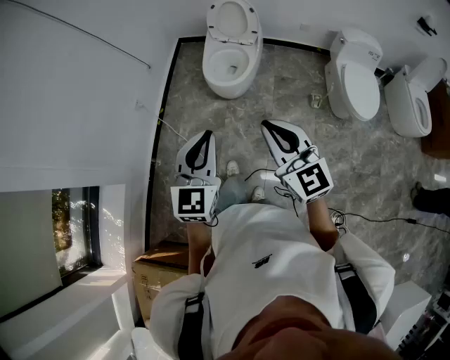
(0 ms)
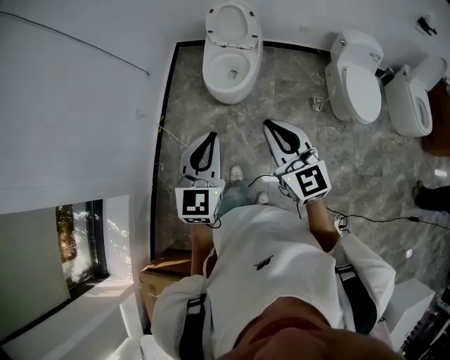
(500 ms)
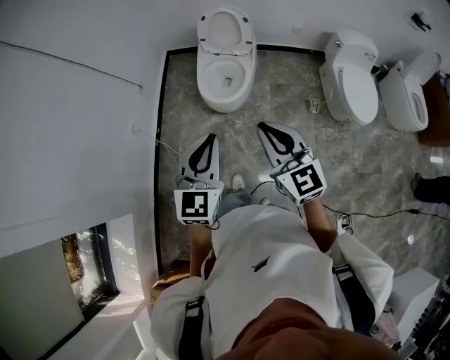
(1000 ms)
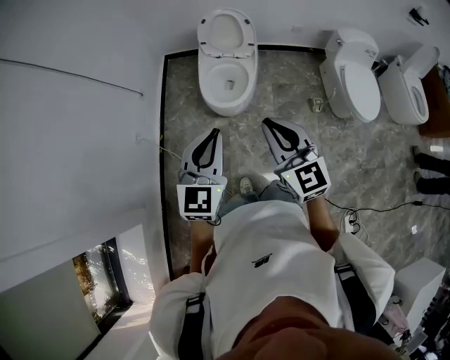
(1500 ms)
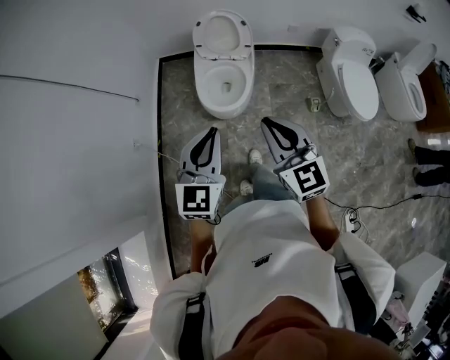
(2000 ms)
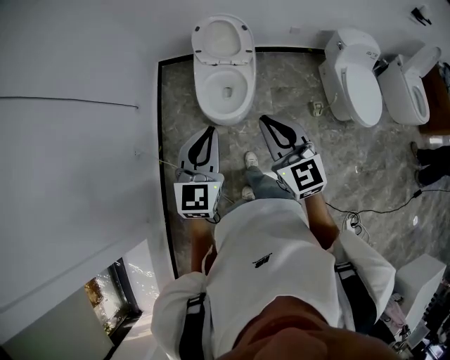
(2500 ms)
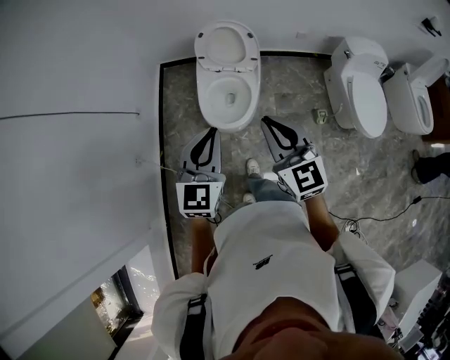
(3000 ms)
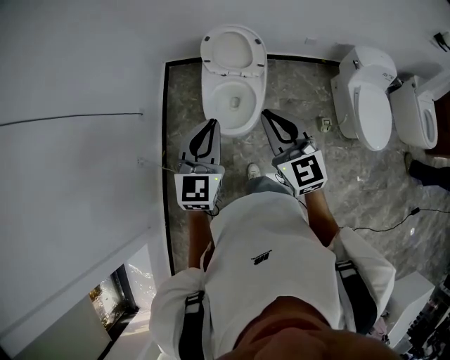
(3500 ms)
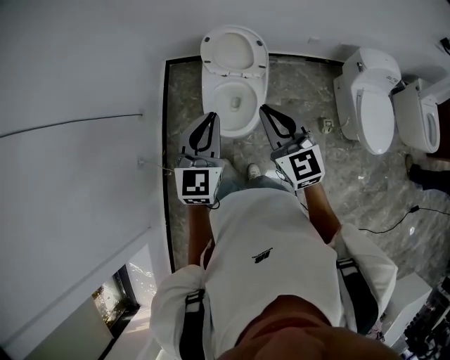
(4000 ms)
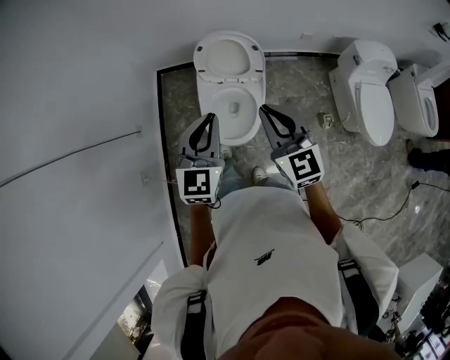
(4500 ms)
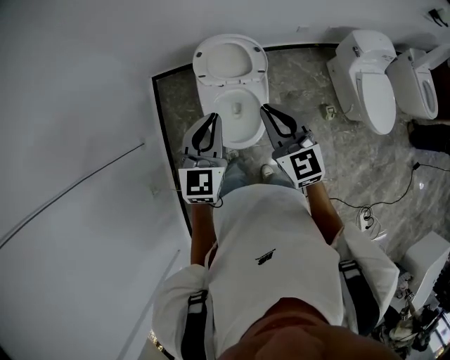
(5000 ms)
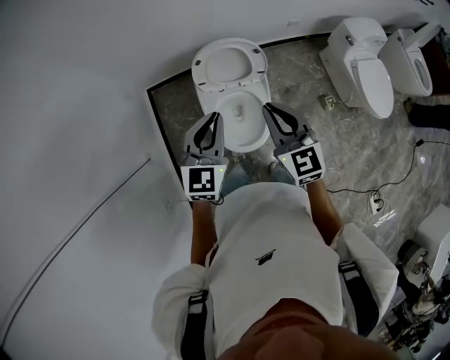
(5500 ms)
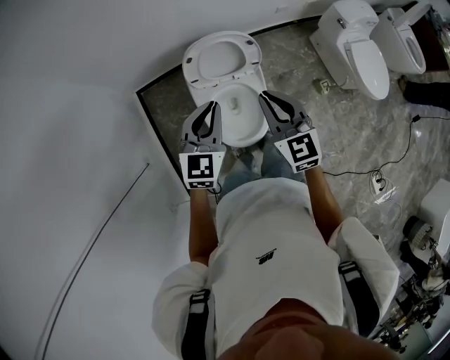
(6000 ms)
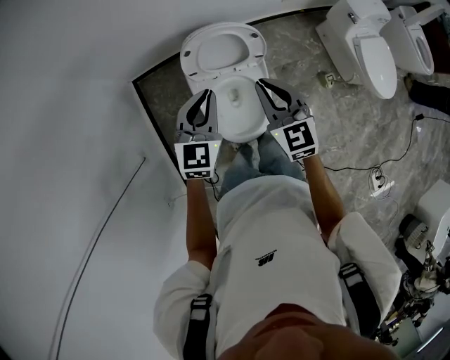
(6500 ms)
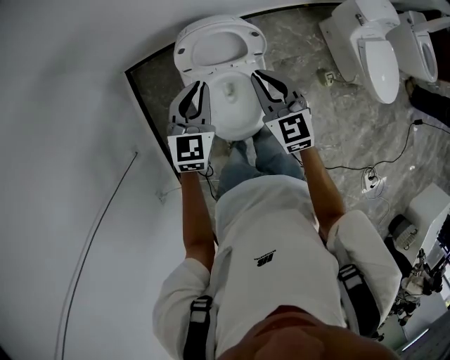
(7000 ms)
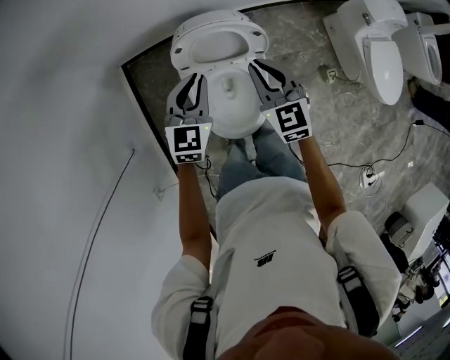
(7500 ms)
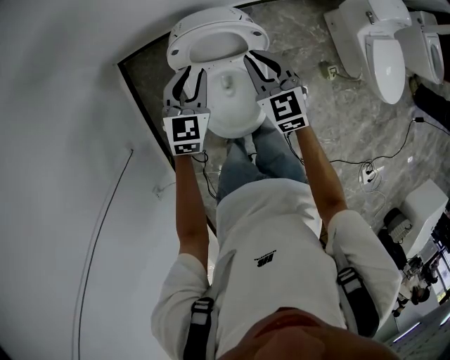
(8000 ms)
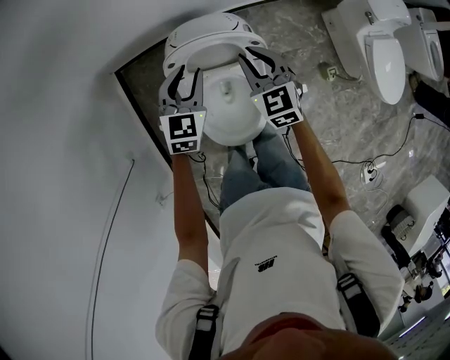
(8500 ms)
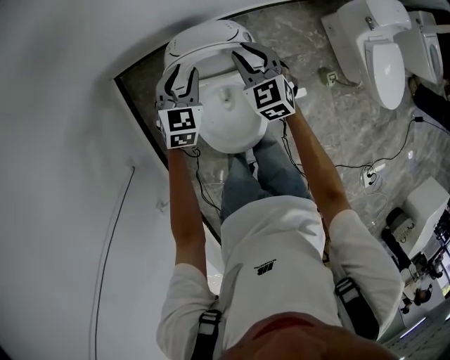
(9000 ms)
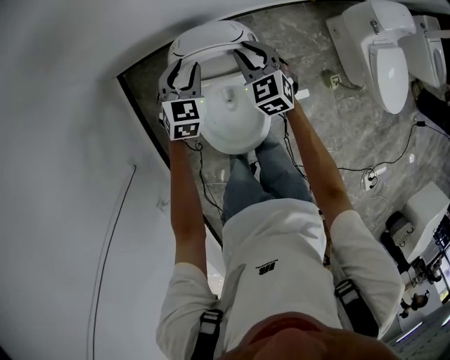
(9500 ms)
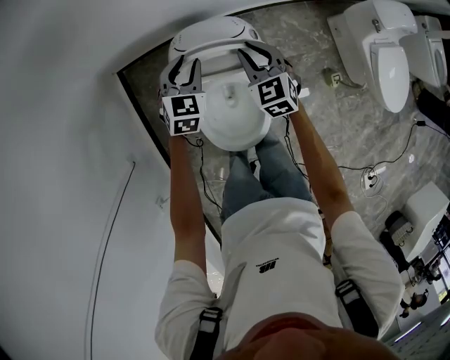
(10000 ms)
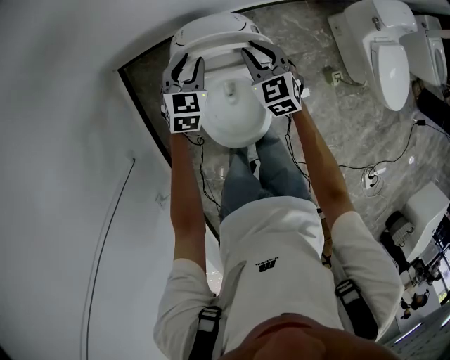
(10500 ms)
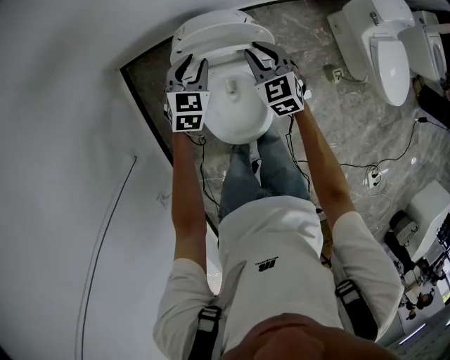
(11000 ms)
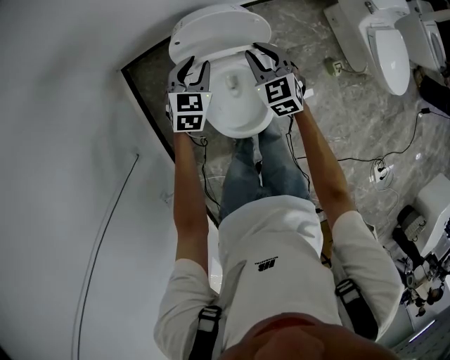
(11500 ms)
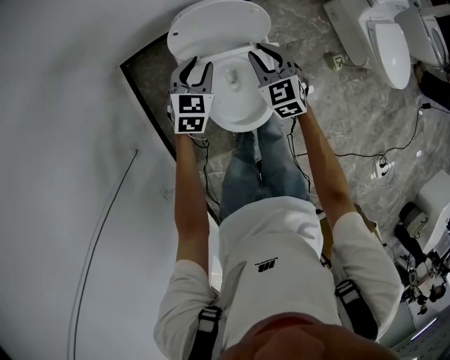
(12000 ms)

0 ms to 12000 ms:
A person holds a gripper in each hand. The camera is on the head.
0 ms to 2000 ms: The two grippers go some 20 cm forward.
2000 ms to 4000 ms: Both grippers travel together forward, about 25 cm.
4000 ms to 6000 ms: The left gripper heads forward, downward and to the left, covering roughly 25 cm, and changes its angle by roughly 30 degrees. Meanwhile the right gripper moves forward, to the left and downward, some 25 cm, and changes its angle by approximately 30 degrees.
6000 ms to 8000 ms: Both grippers travel together forward and downward, about 20 cm.
8000 ms to 10000 ms: The grippers both shift forward and downward by roughly 10 cm.
10000 ms to 12000 ms: The two grippers go some 15 cm backward.

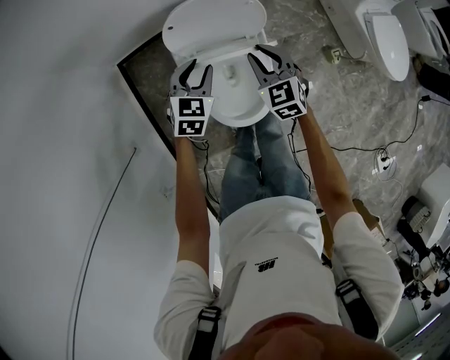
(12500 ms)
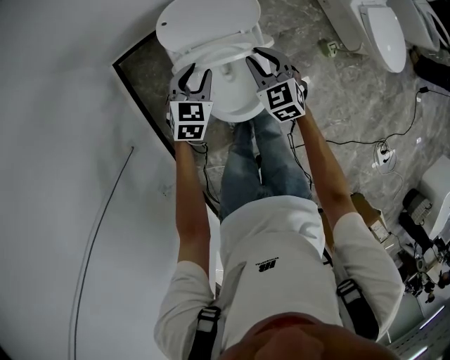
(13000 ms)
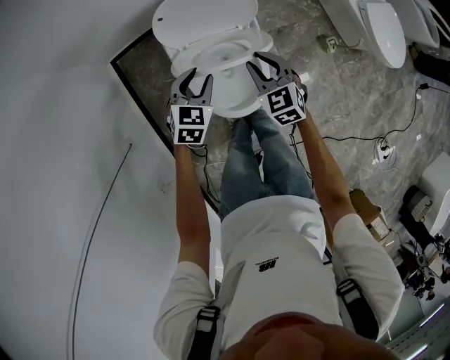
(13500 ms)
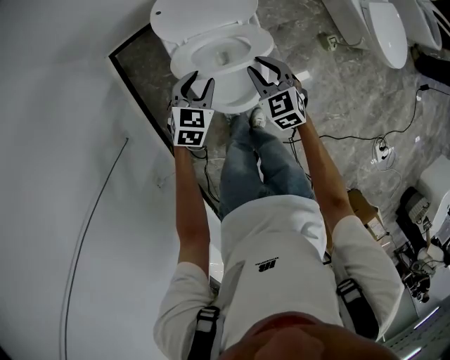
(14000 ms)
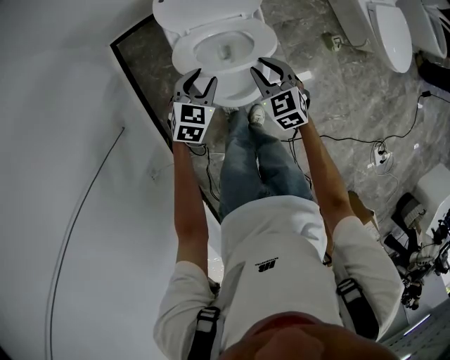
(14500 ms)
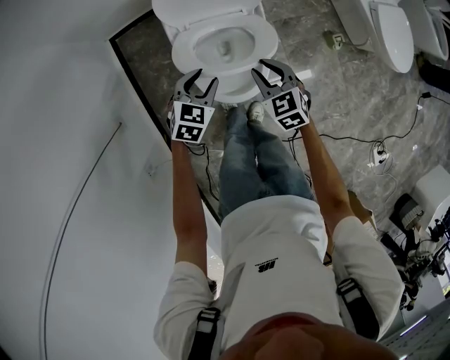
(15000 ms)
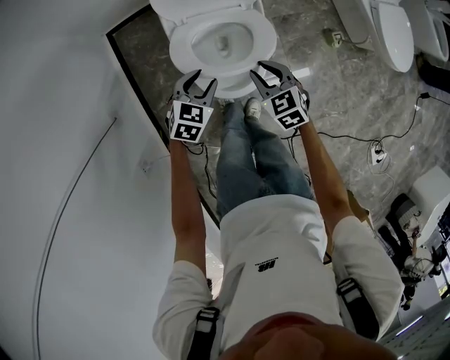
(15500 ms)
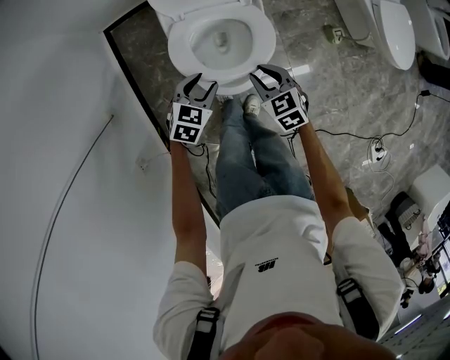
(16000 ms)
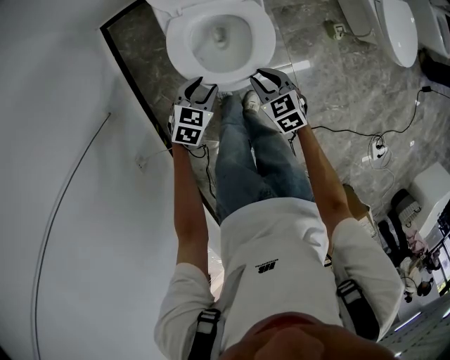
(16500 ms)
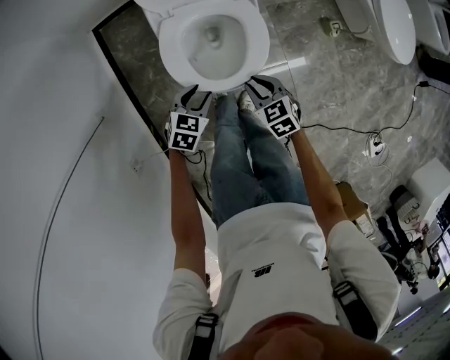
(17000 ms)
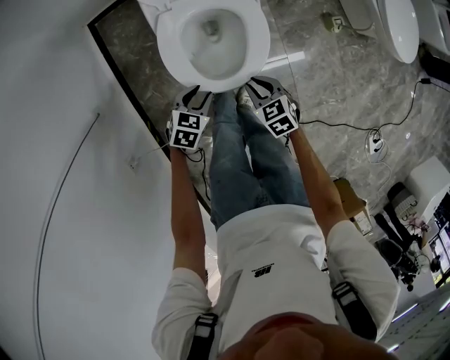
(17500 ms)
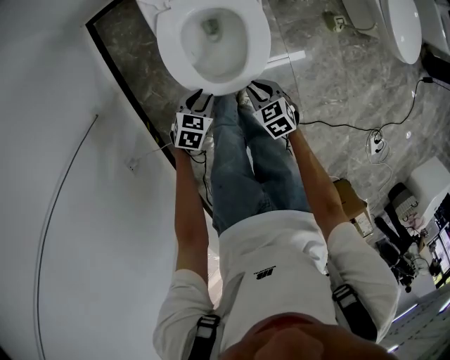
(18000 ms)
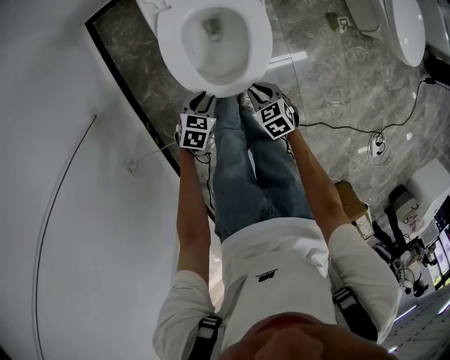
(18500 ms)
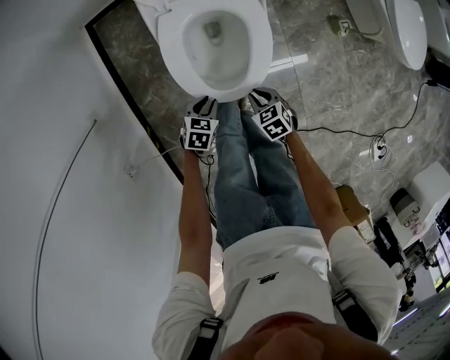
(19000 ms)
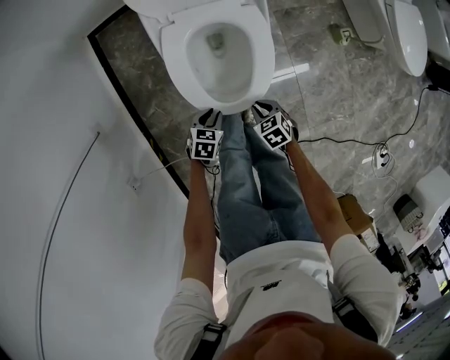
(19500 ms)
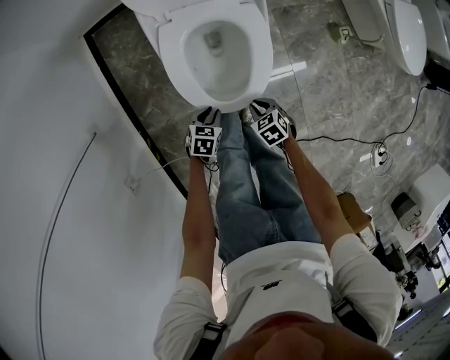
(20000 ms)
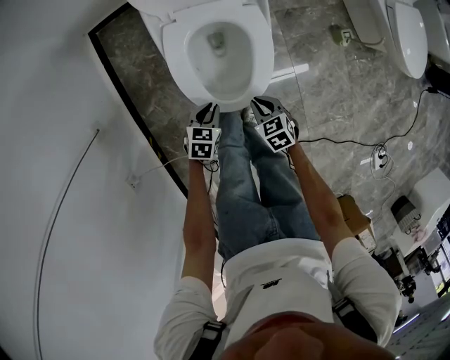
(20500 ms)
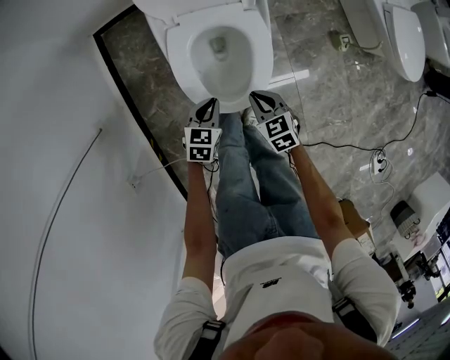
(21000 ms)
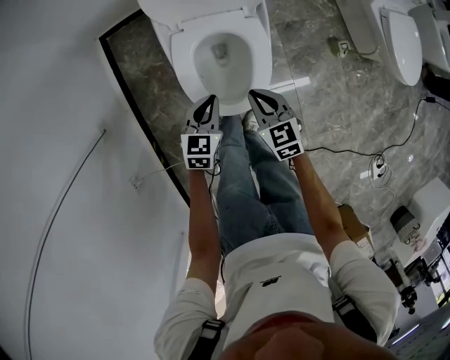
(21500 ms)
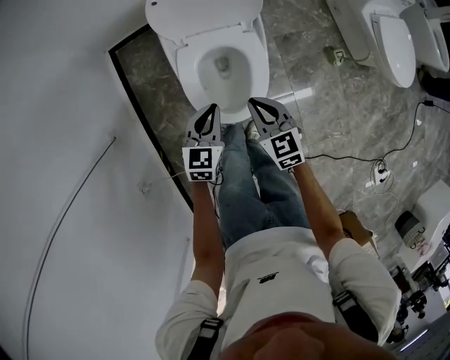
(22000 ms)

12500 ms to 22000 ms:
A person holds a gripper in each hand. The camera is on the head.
12500 ms to 14500 ms: The two grippers go approximately 10 cm backward.
14500 ms to 16500 ms: Both grippers move backward and downward, roughly 10 cm.
16500 ms to 18000 ms: The grippers both shift downward and backward by roughly 10 cm.
18000 ms to 20000 ms: Both grippers move downward, roughly 10 cm.
20000 ms to 22000 ms: The two grippers go approximately 25 cm upward. The left gripper rotates about 40 degrees. The right gripper points its fingers roughly 30 degrees further upward.

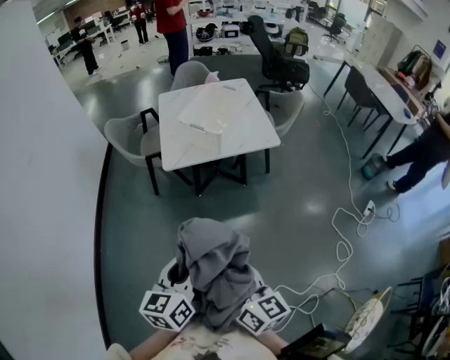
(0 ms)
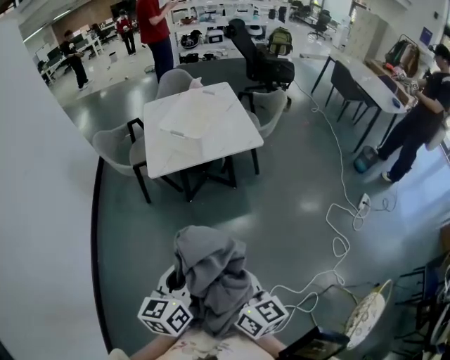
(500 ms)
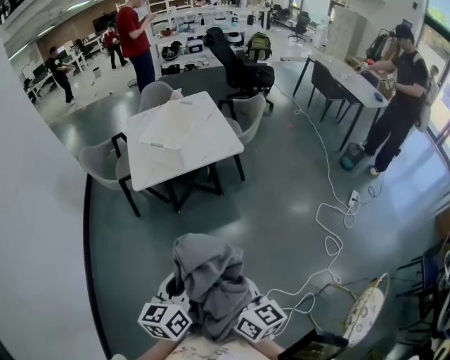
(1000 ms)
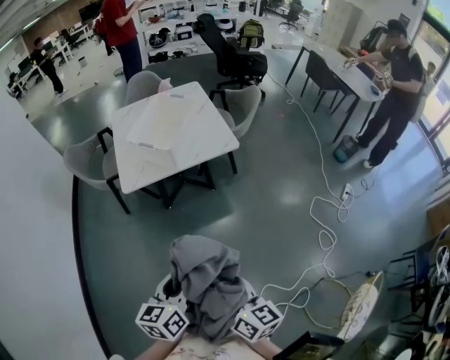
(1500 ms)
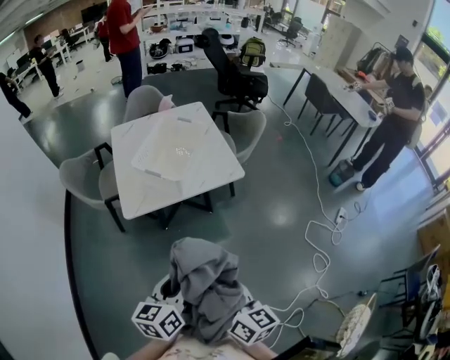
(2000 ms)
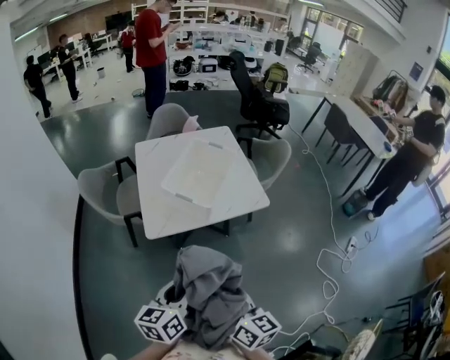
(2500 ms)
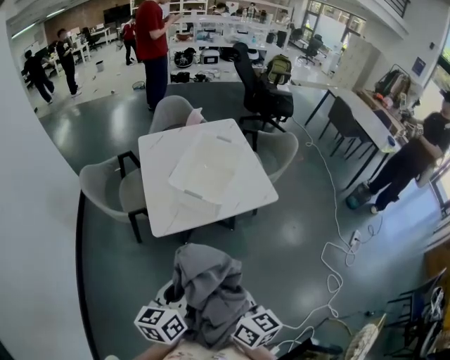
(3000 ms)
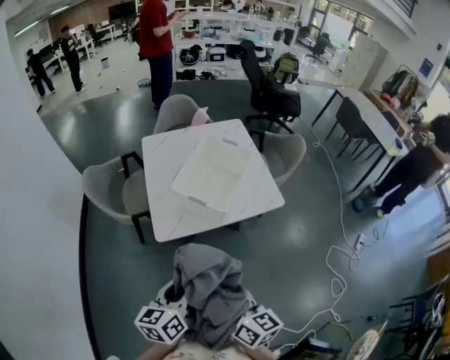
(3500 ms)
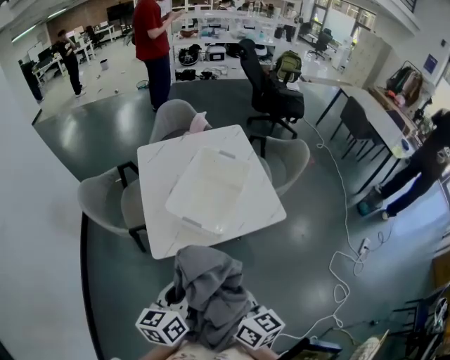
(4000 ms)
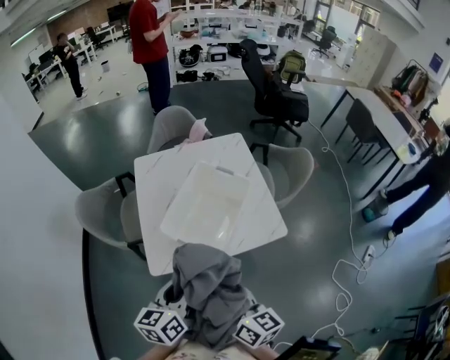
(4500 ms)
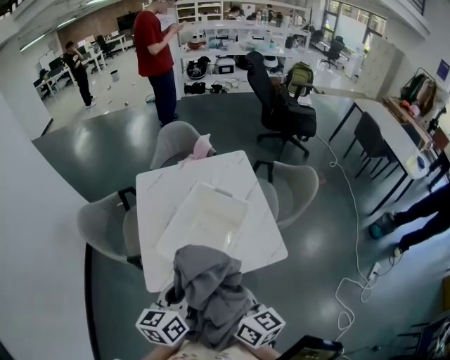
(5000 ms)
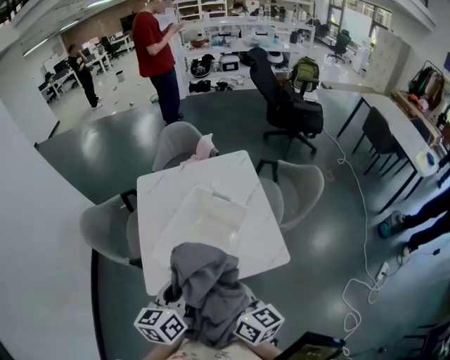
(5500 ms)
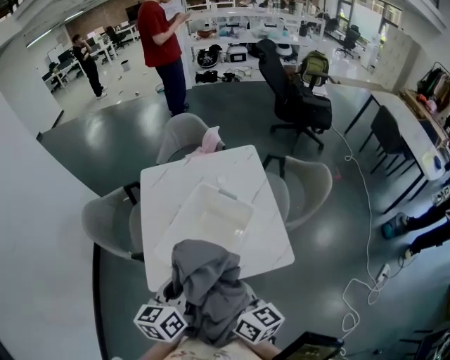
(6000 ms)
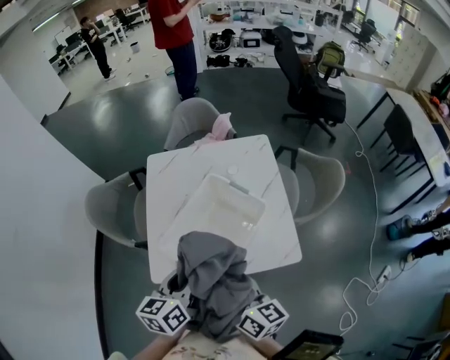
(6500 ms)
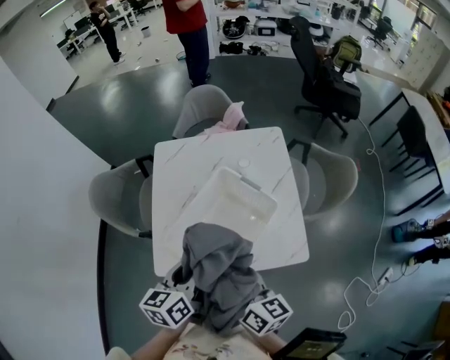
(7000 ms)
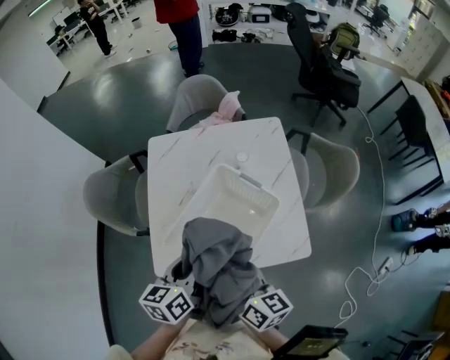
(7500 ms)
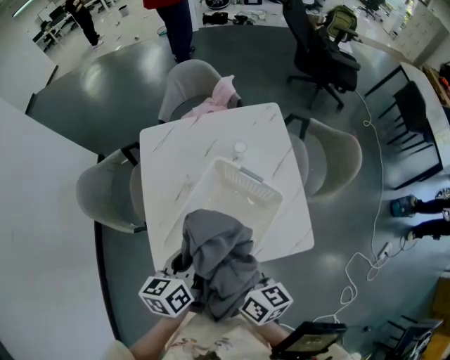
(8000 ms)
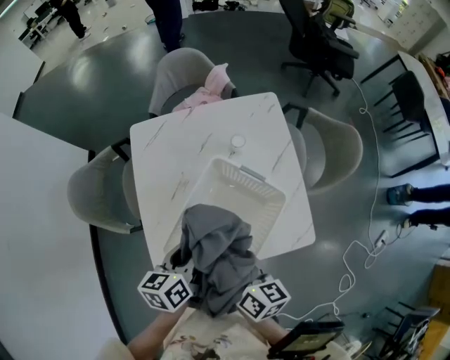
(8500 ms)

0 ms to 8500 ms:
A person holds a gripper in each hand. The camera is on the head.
0 ms to 2000 ms: The grippers both shift forward by some 15 cm.
2000 ms to 4000 ms: The two grippers go approximately 25 cm forward and to the left.
4000 ms to 6500 ms: The two grippers go some 25 cm forward.
6500 ms to 8500 ms: Both grippers travel together forward and downward, about 15 cm.
